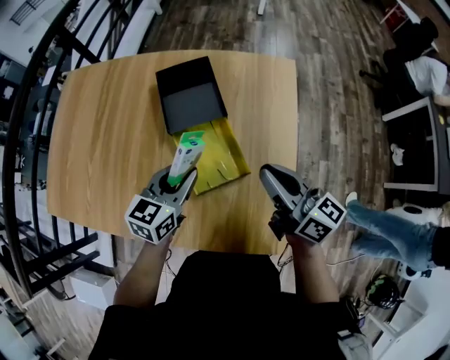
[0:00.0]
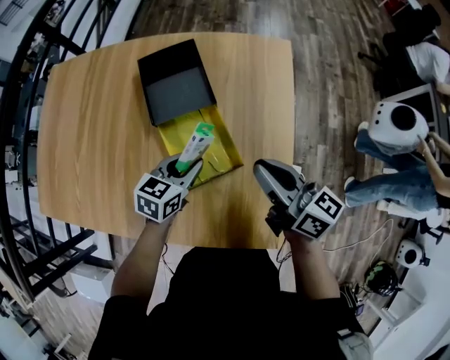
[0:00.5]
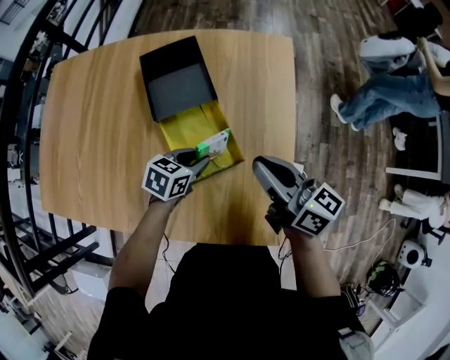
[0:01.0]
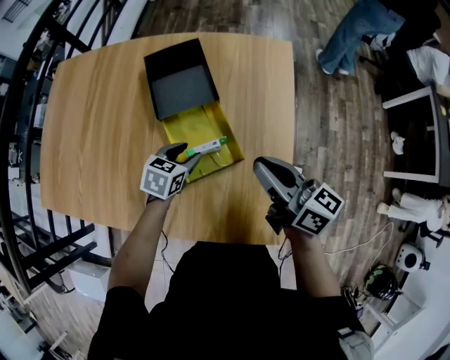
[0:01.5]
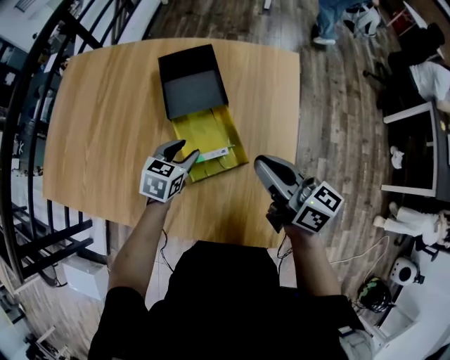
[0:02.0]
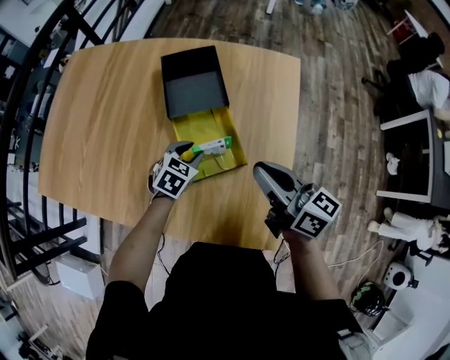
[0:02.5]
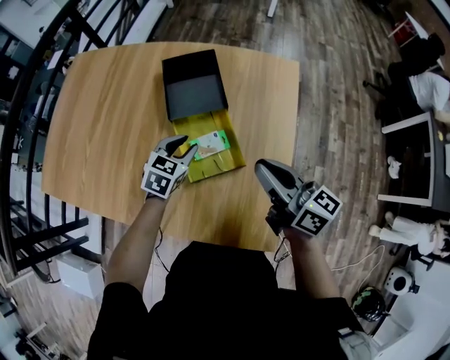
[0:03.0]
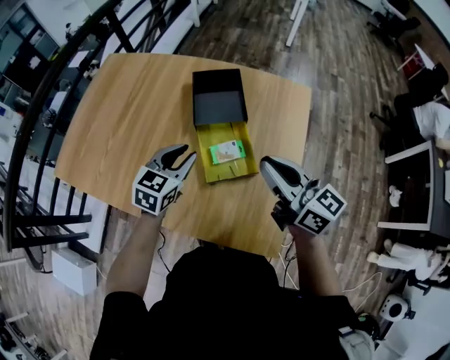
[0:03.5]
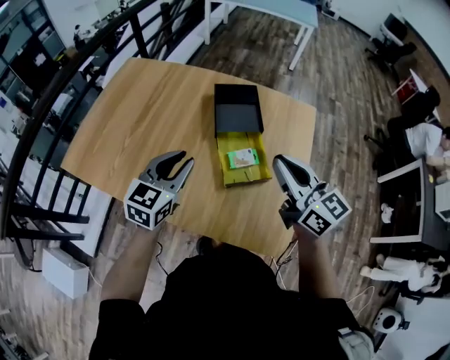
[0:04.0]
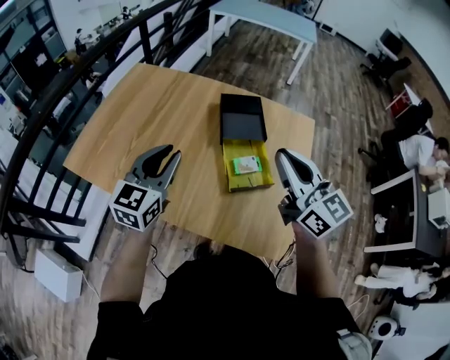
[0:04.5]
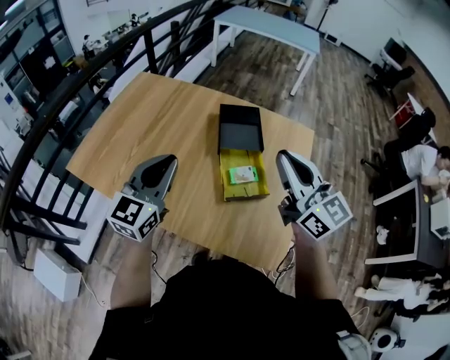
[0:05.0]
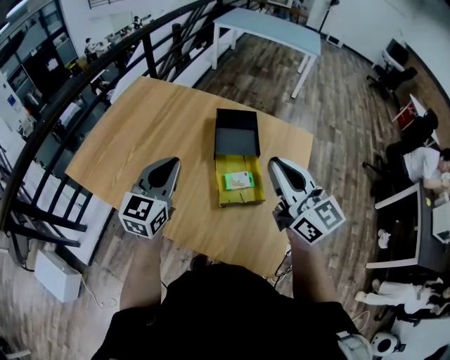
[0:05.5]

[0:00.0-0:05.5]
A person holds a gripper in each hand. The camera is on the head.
0:00.0 to 0:02.0: The left gripper shifts about 10 cm downward, and opens its fingers.
0:02.0 to 0:03.5: The left gripper is displaced upward by approximately 10 cm, and closes. Meanwhile the right gripper shifts about 5 cm upward.
0:03.5 to 0:05.5: Both grippers move upward and to the left, some 15 cm. The left gripper rotates some 30 degrees, and closes. Meanwhile the right gripper changes its angle by about 20 degrees.

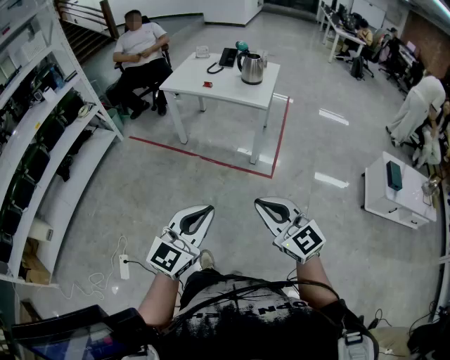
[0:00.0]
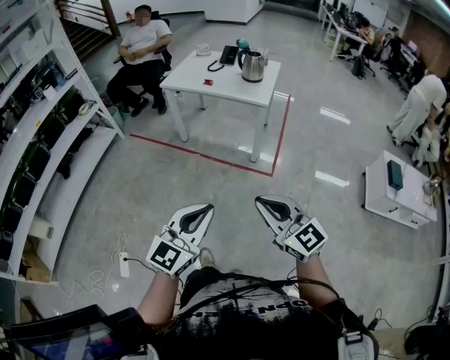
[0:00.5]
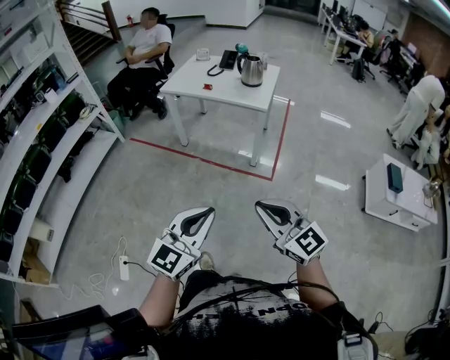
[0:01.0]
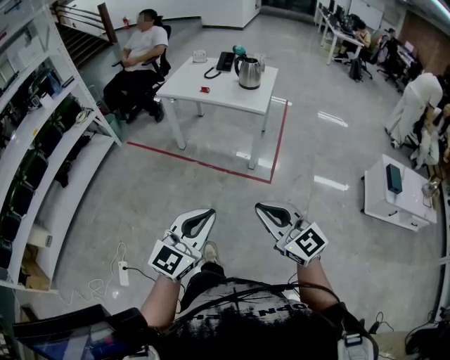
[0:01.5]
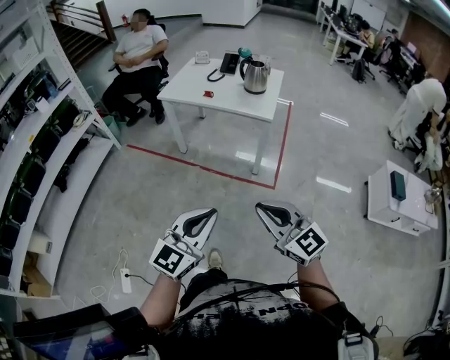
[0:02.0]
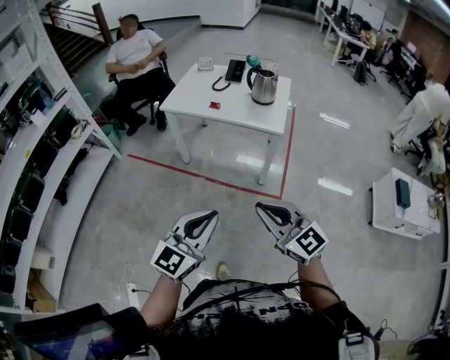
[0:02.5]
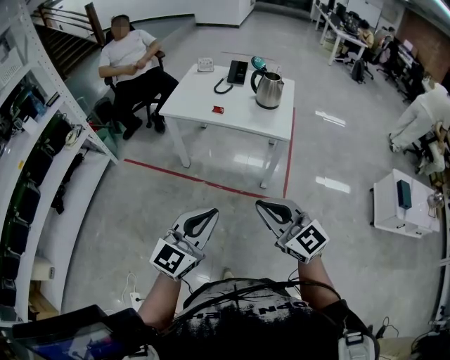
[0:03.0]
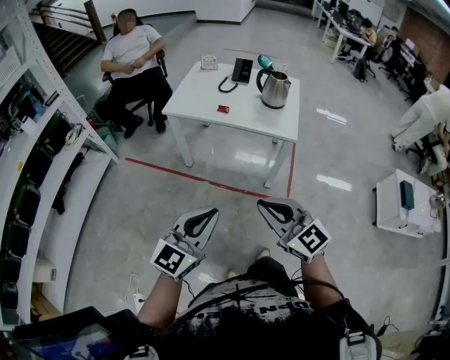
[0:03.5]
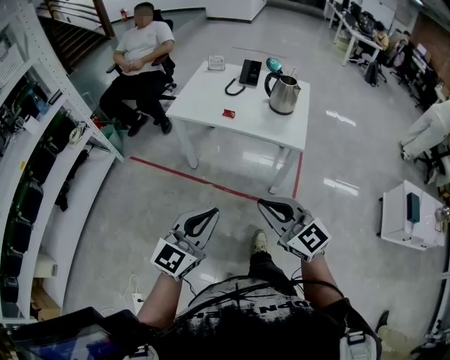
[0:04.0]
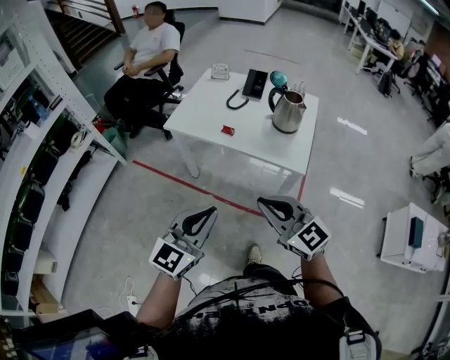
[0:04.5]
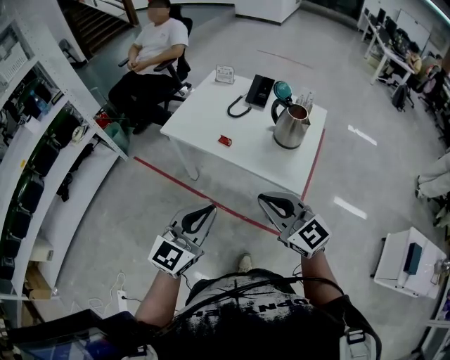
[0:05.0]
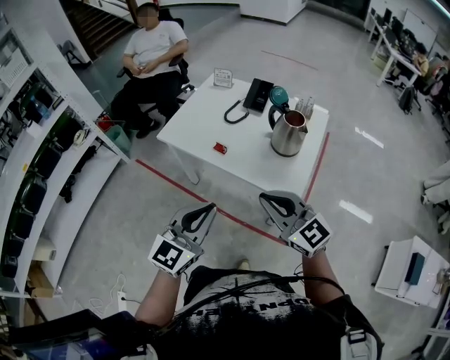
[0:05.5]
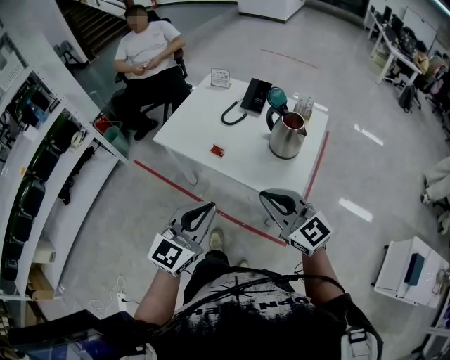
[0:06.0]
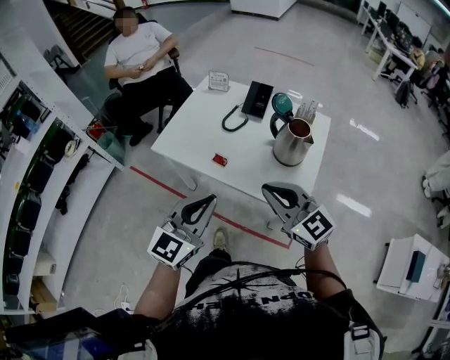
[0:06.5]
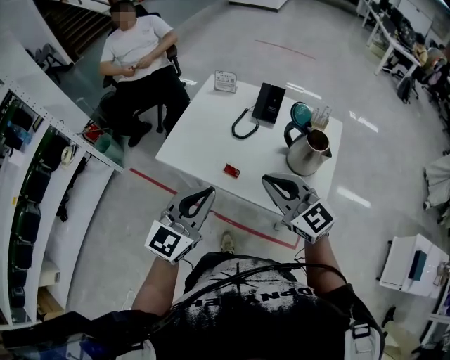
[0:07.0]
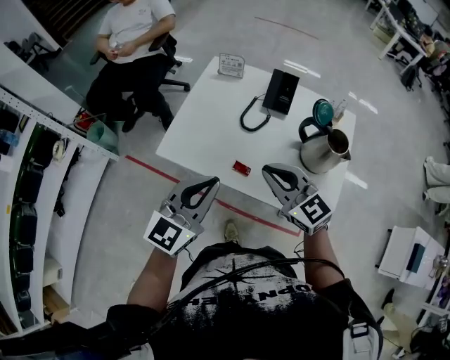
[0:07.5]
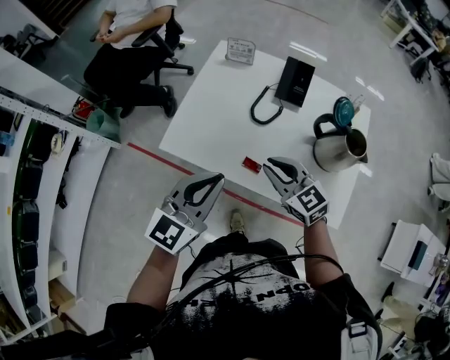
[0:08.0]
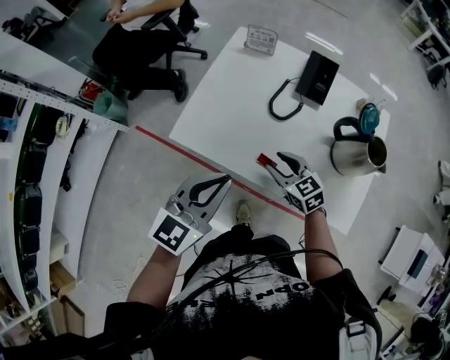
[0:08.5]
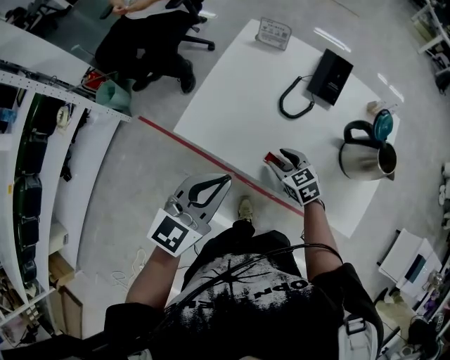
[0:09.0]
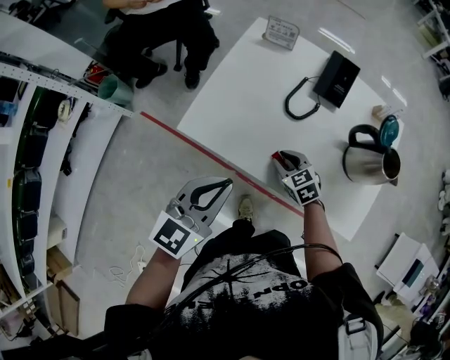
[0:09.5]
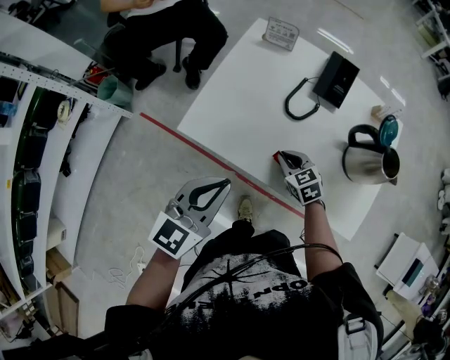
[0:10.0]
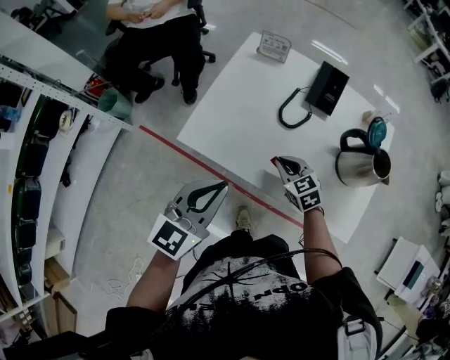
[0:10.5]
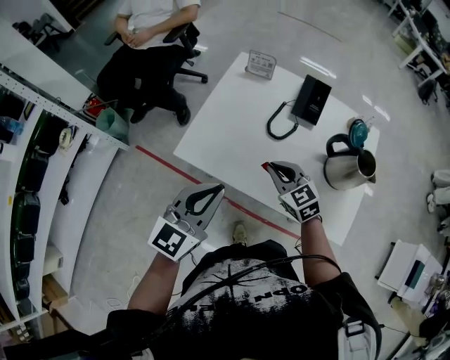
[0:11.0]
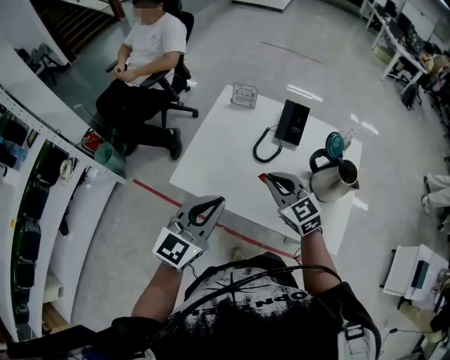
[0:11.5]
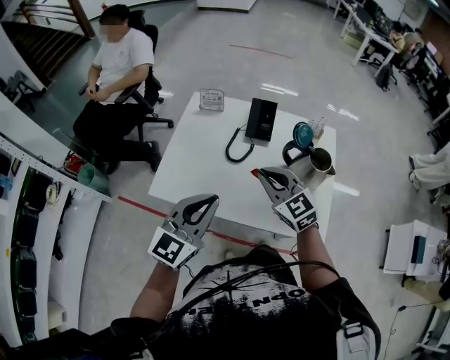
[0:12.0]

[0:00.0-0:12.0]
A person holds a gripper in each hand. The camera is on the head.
0:00.0 to 0:02.0: Both grippers travel together forward, roughly 10 cm.
0:02.0 to 0:04.0: Both grippers travel together forward and to the left, roughly 30 cm.
0:04.0 to 0:06.0: Both grippers travel together forward and to the right, some 30 cm.
0:06.0 to 0:08.0: The left gripper shifts some 30 cm forward and to the left; the right gripper goes some 35 cm forward, downward and to the left, and rotates about 20 degrees.
0:08.0 to 0:10.0: The left gripper is displaced downward and to the left by roughly 5 cm. The right gripper goes approximately 20 cm downward, changes its angle by roughly 20 degrees, and opens and closes again.
0:10.0 to 0:12.0: The left gripper travels upward and to the right by some 10 cm. Meanwhile the right gripper goes roughly 25 cm upward, and rotates roughly 30 degrees.

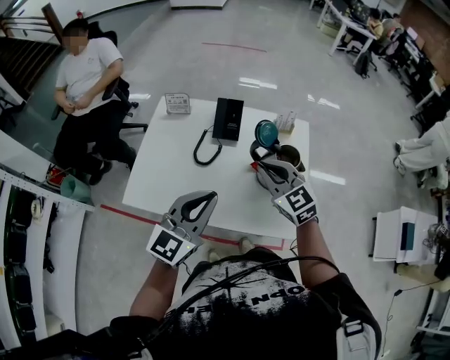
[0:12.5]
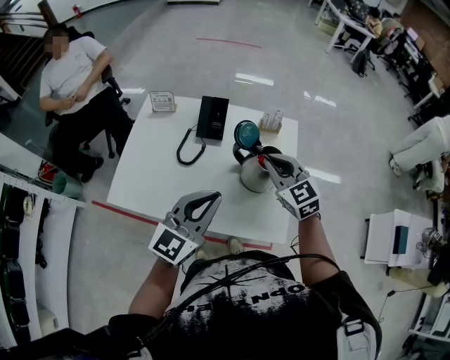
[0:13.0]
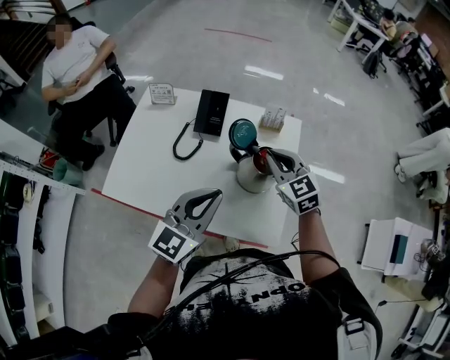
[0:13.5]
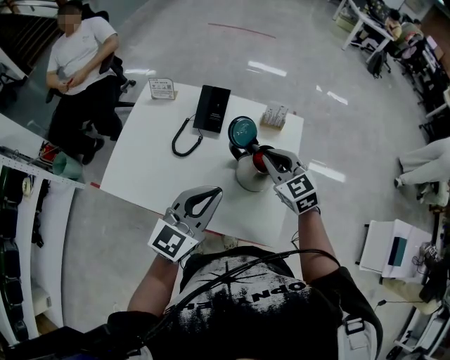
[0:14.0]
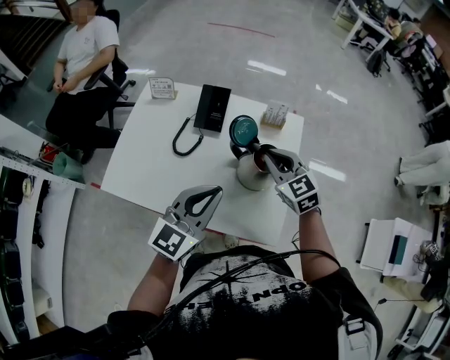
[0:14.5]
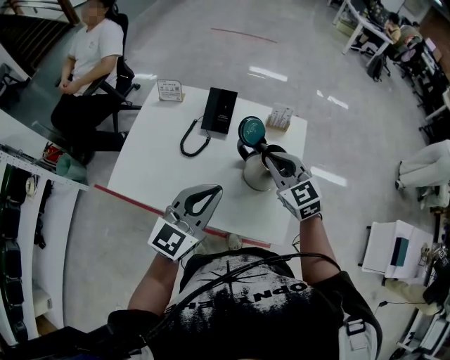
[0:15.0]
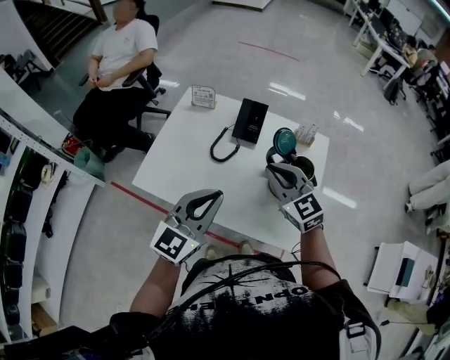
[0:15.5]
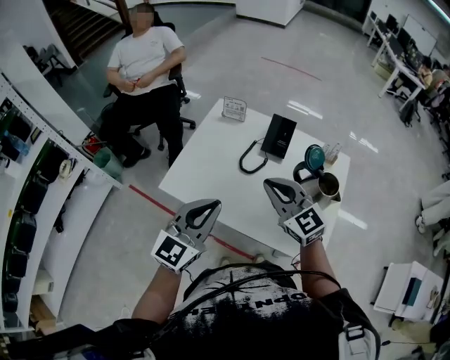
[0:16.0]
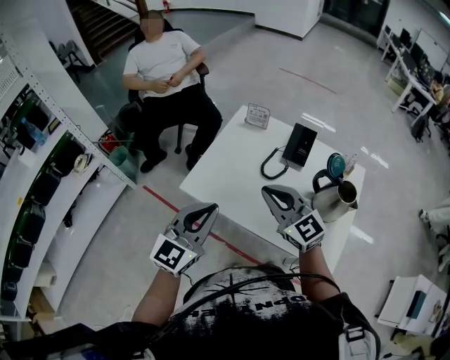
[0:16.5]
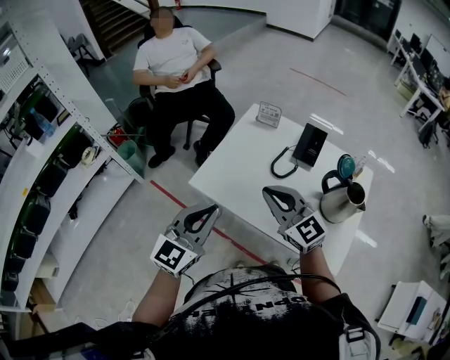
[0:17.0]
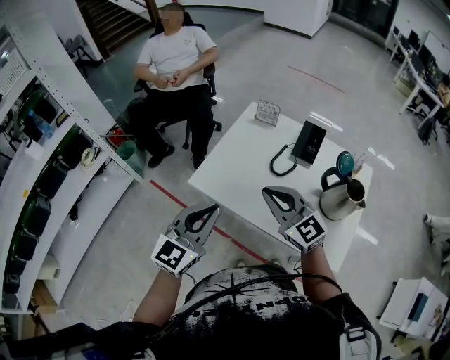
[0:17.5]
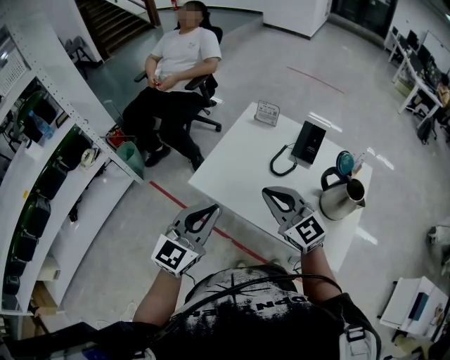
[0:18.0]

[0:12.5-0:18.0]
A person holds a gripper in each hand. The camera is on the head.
0:12.5 to 0:14.5: The left gripper travels to the right by approximately 10 cm. The right gripper heads to the right, forward and downward, covering some 15 cm.
0:14.5 to 0:16.0: Both grippers move to the left, approximately 20 cm. The right gripper swivels roughly 30 degrees.
0:16.0 to 0:18.0: The grippers both shift to the left by roughly 10 cm.

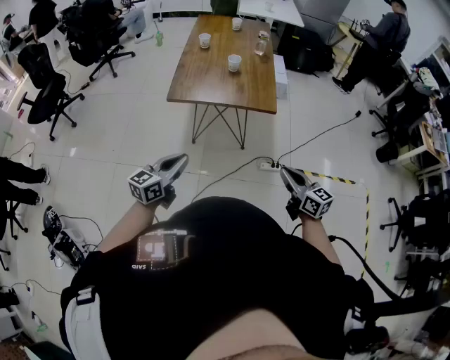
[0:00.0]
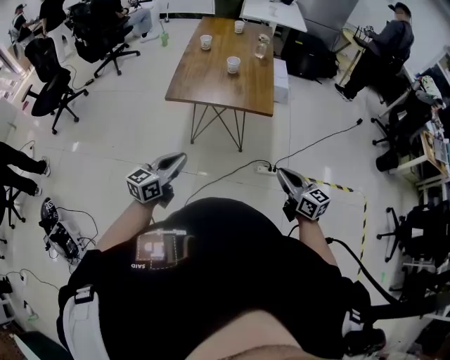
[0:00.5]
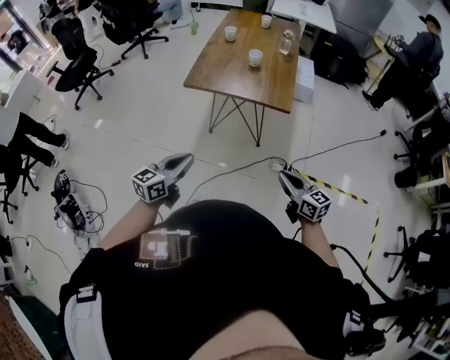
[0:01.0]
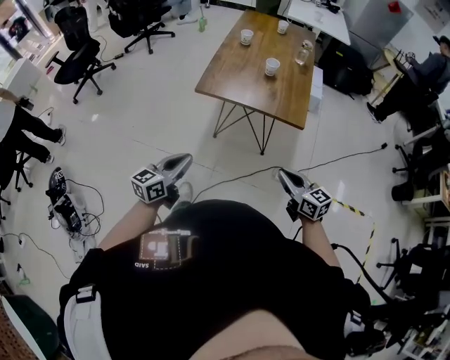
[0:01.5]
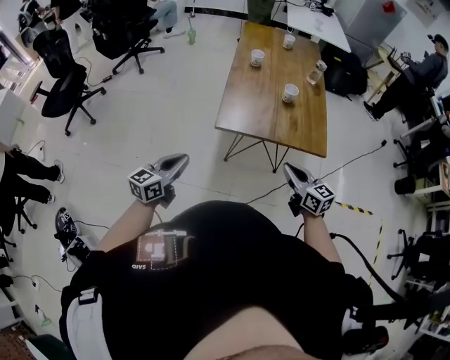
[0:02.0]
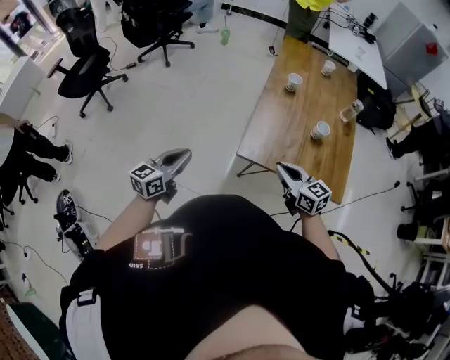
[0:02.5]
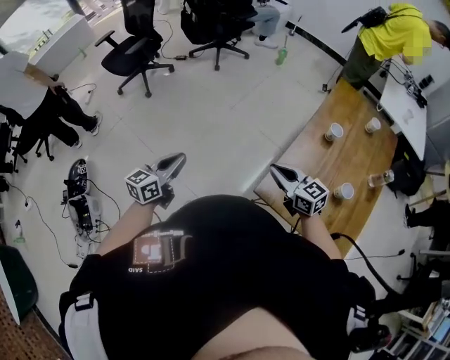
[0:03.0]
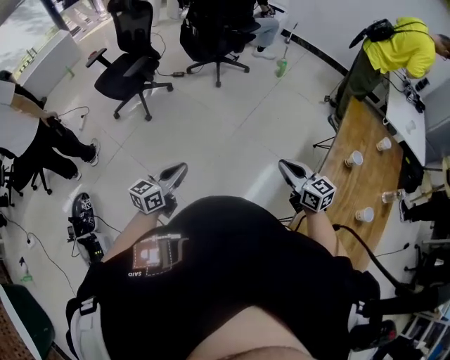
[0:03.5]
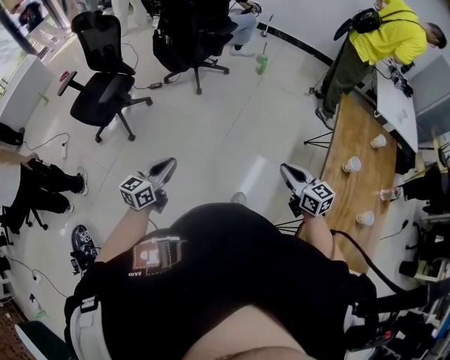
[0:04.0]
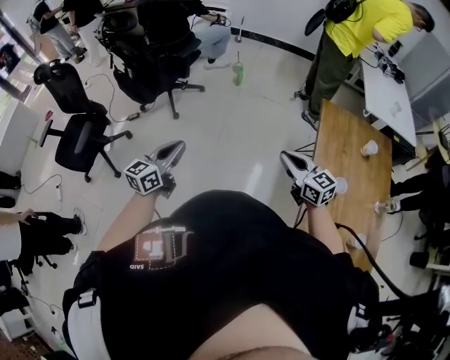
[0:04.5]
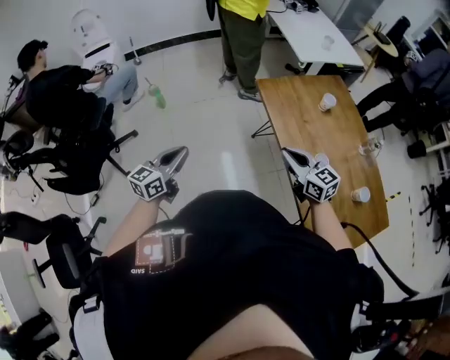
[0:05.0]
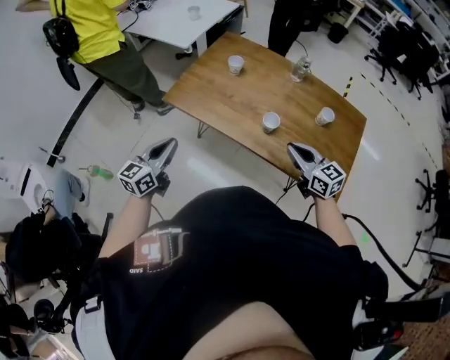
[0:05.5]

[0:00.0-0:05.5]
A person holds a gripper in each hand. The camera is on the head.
0:00.0 to 0:02.0: The right gripper is displaced forward and to the left by approximately 30 cm. Meanwhile the left gripper moves to the left and forward, roughly 25 cm.
0:02.0 to 0:03.5: Both grippers are carried about 50 cm. The left gripper changes its angle by approximately 30 degrees, while the right gripper changes its angle by approximately 30 degrees.
0:03.5 to 0:05.5: The right gripper changes place by about 35 cm, and swivels about 90 degrees. The left gripper moves some 80 cm, and swivels approximately 90 degrees.
